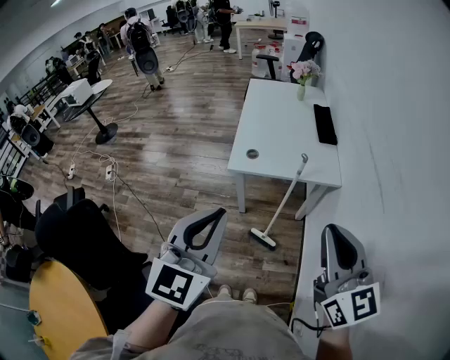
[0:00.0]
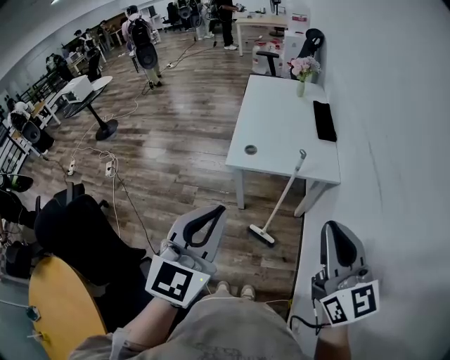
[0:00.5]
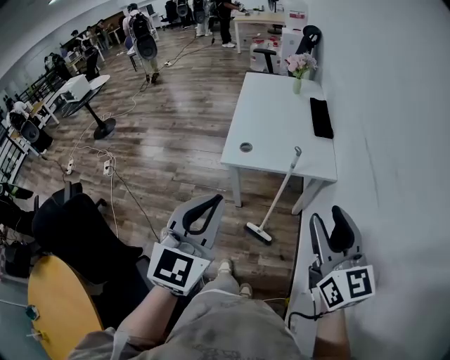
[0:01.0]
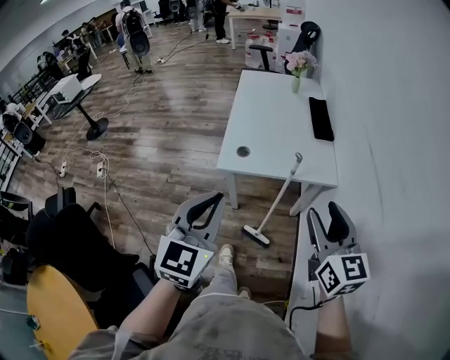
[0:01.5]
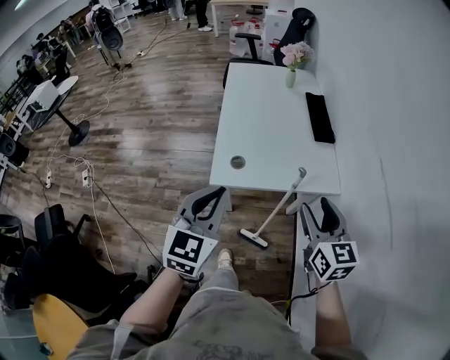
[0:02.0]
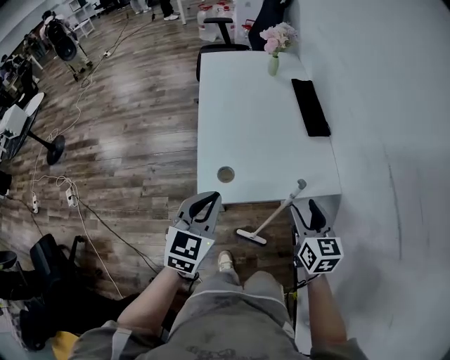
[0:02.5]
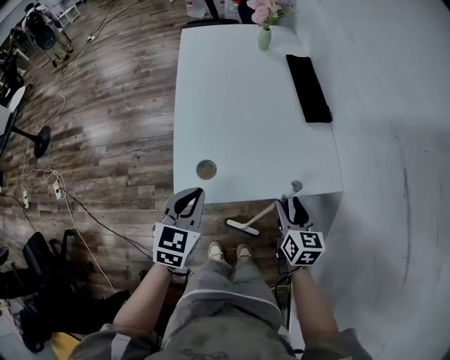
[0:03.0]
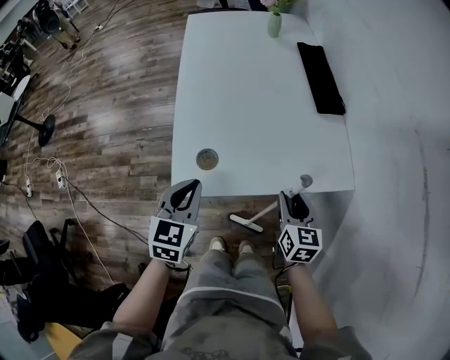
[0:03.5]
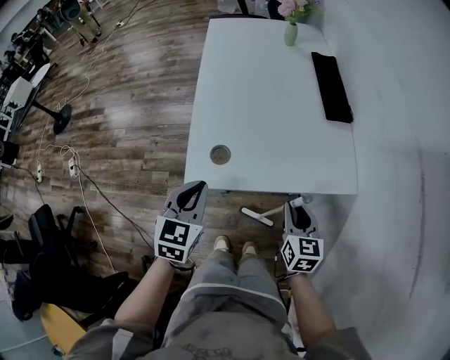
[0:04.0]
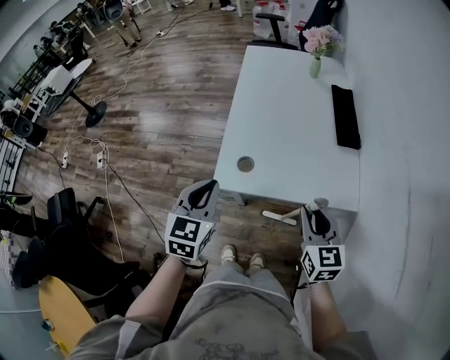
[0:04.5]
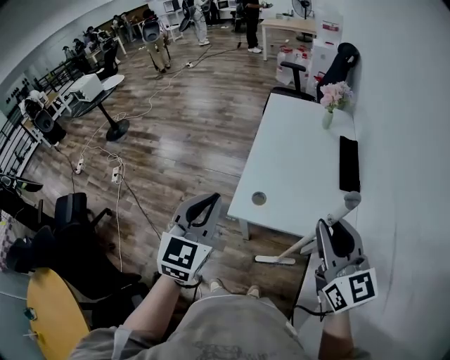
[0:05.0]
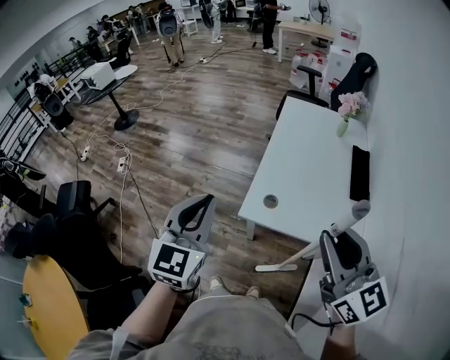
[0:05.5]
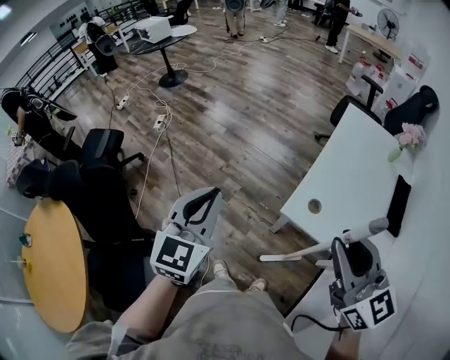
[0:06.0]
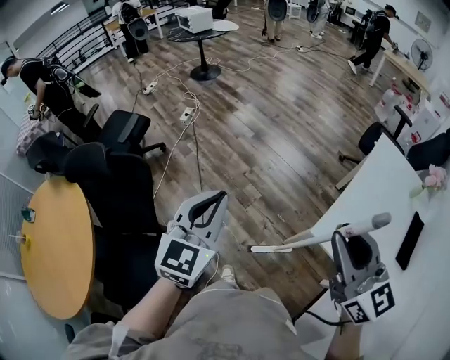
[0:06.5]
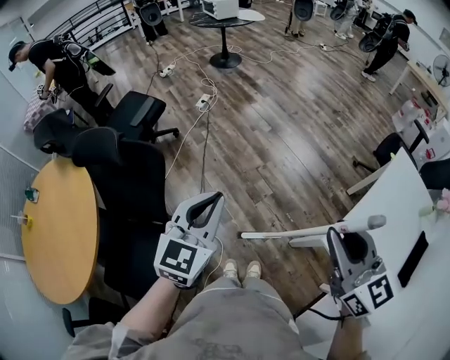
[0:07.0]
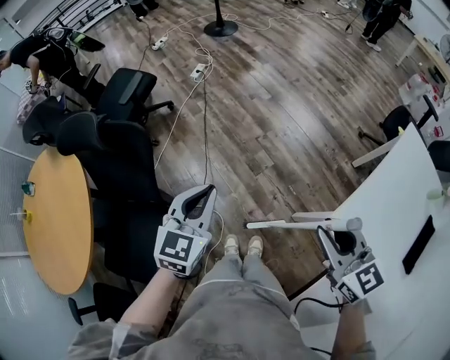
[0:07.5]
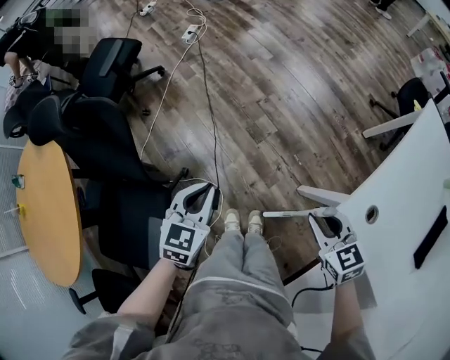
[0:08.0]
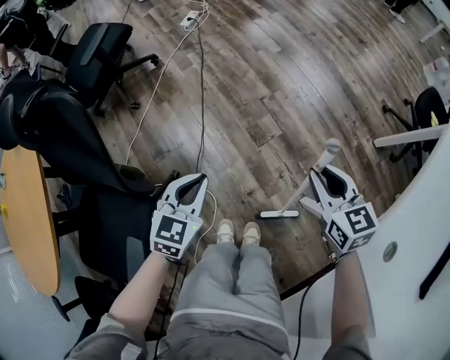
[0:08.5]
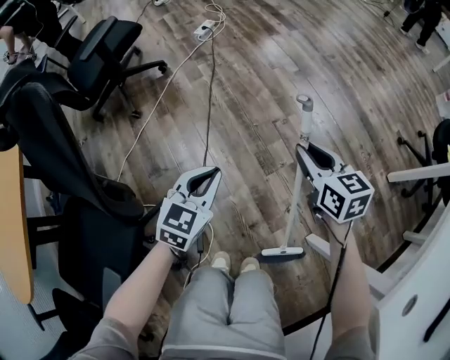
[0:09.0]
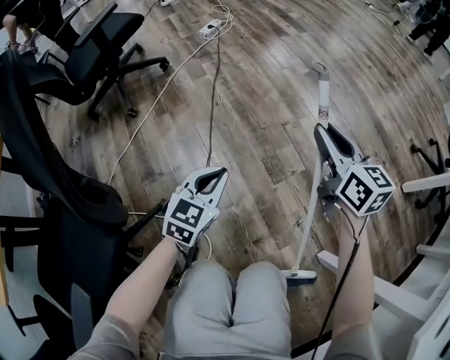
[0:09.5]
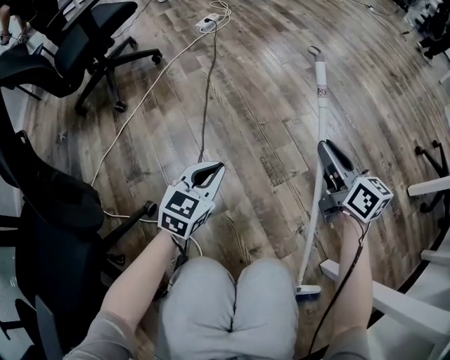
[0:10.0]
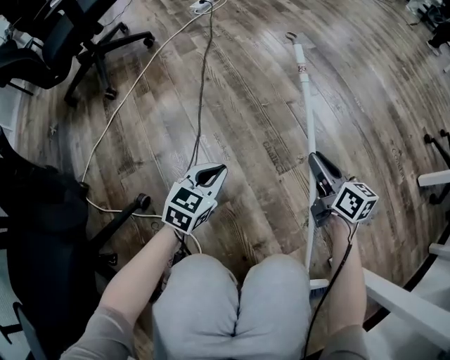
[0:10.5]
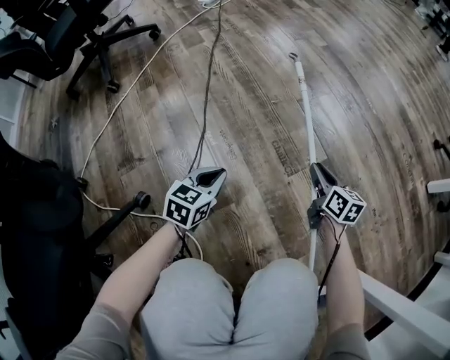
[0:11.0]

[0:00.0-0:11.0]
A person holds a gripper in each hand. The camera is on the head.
0:00.0 to 0:02.0: The two grippers go approximately 30 cm forward and downward. The right gripper turns by some 20 degrees, and opens up.
0:02.0 to 0:03.5: Both grippers travel together downward and forward, roughly 30 cm.
0:03.5 to 0:05.5: Both grippers move upward, approximately 35 cm. The left gripper turns by roughly 30 degrees; the right gripper swivels approximately 50 degrees.
0:05.5 to 0:07.5: The left gripper shifts by approximately 35 cm, and turns by about 40 degrees, while the right gripper shifts by some 35 cm, and changes its angle by approximately 50 degrees.
0:07.5 to 0:09.0: The left gripper shifts roughly 40 cm downward, while the right gripper goes approximately 50 cm downward and forward.
0:09.0 to 0:11.0: Both grippers move downward, approximately 40 cm. The right gripper changes its angle by some 20 degrees.

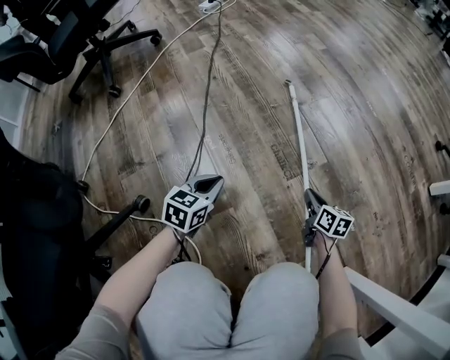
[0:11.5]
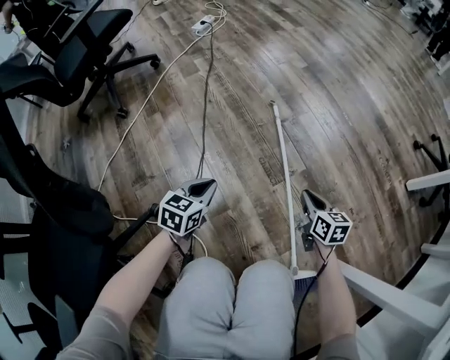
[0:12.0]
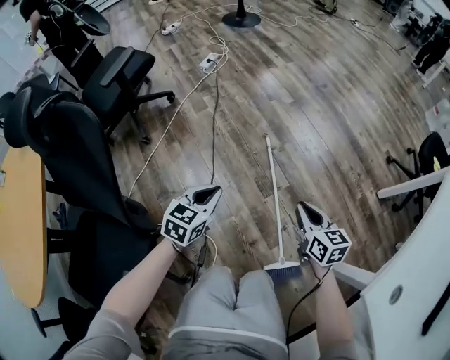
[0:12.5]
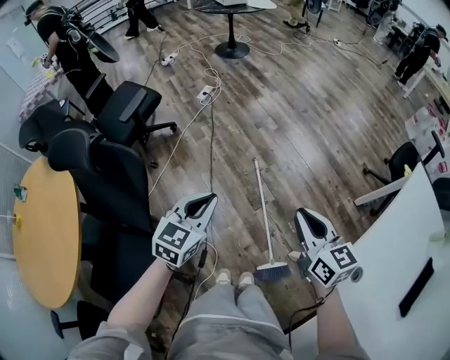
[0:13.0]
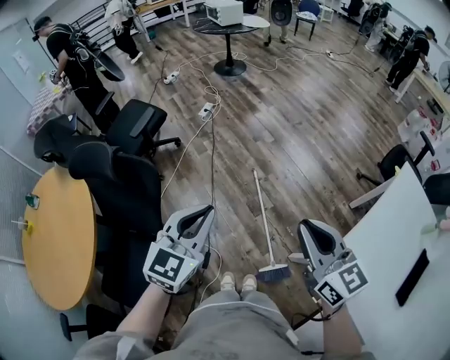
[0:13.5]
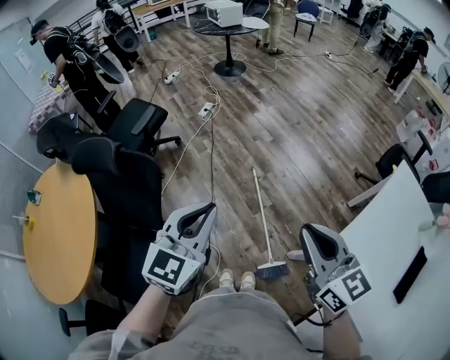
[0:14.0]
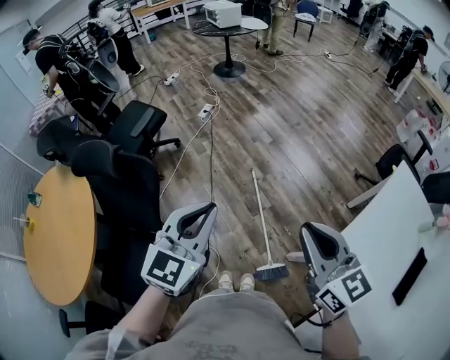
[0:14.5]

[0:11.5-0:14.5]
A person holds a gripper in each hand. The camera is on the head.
0:11.5 to 0:13.0: Both grippers move upward, roughly 80 cm. The right gripper swivels approximately 30 degrees. Meanwhile the left gripper turns by approximately 20 degrees.
0:13.0 to 0:14.5: The grippers both shift upward and backward by approximately 20 cm.

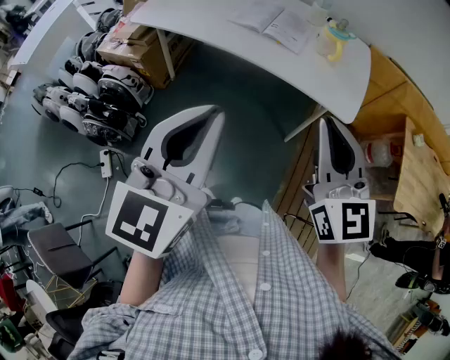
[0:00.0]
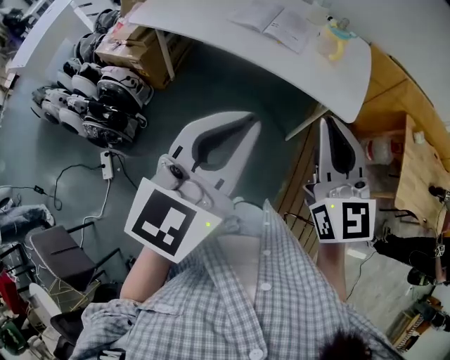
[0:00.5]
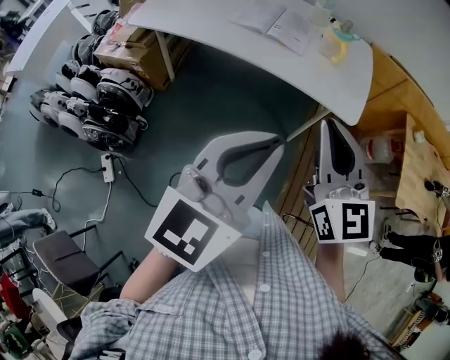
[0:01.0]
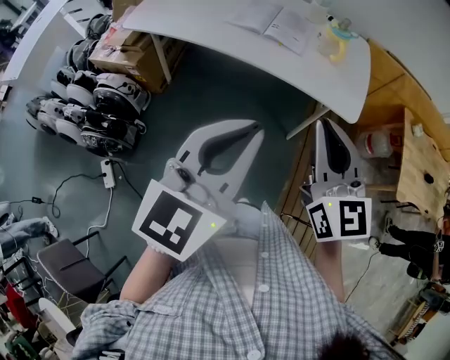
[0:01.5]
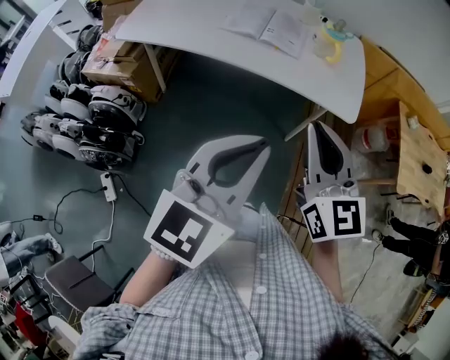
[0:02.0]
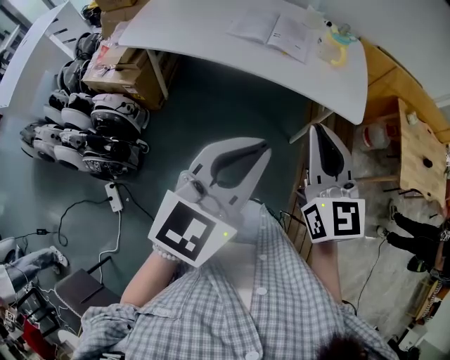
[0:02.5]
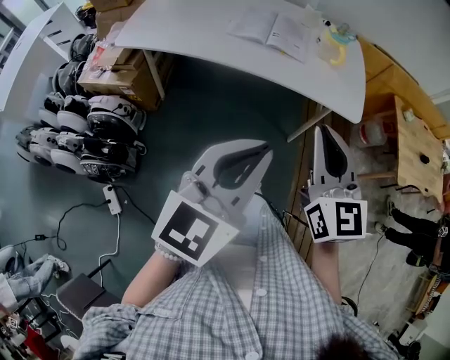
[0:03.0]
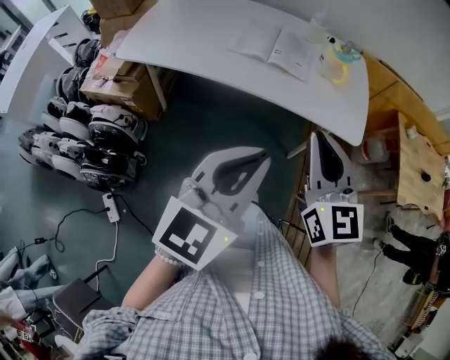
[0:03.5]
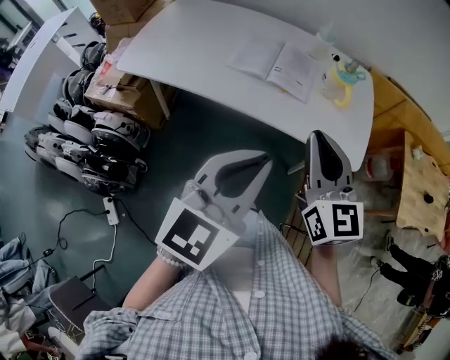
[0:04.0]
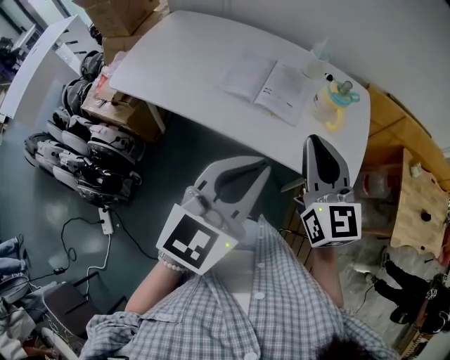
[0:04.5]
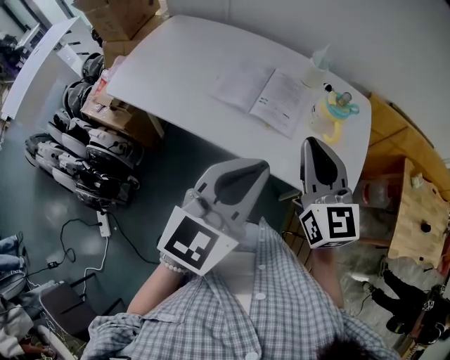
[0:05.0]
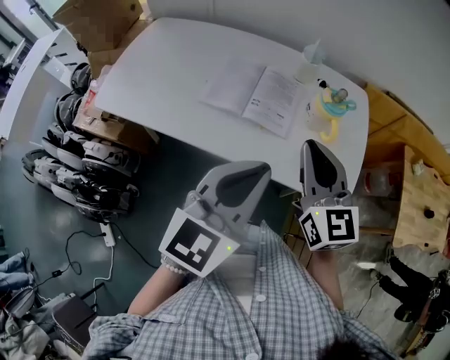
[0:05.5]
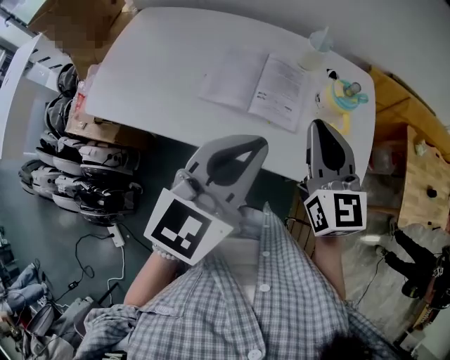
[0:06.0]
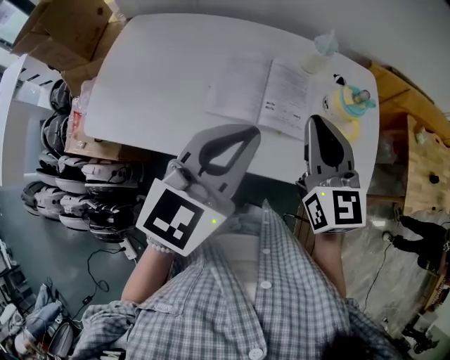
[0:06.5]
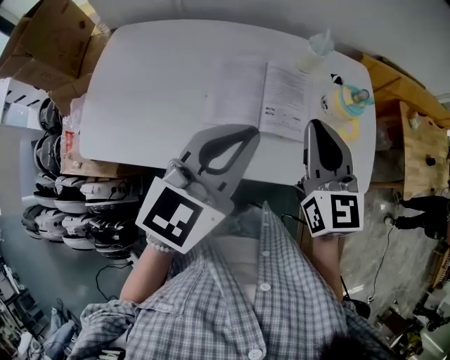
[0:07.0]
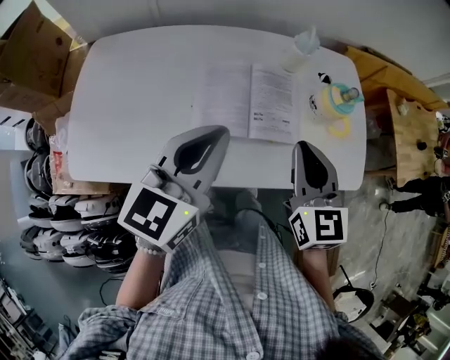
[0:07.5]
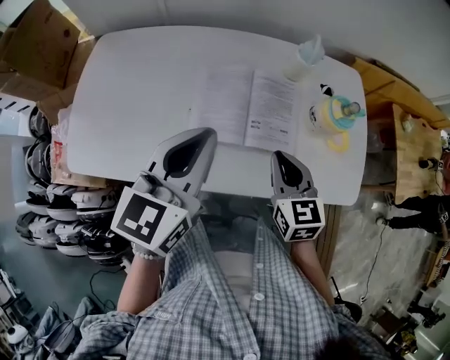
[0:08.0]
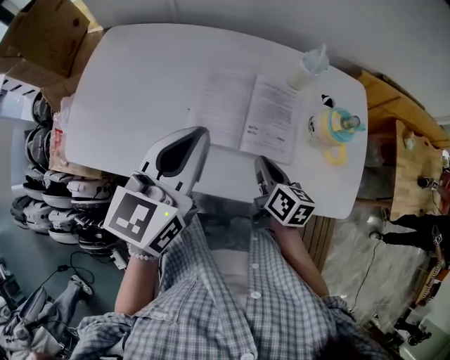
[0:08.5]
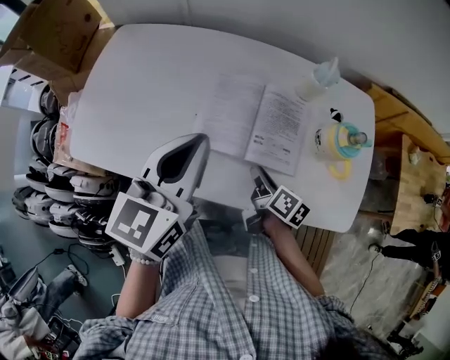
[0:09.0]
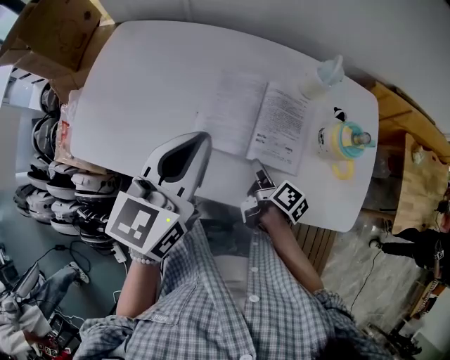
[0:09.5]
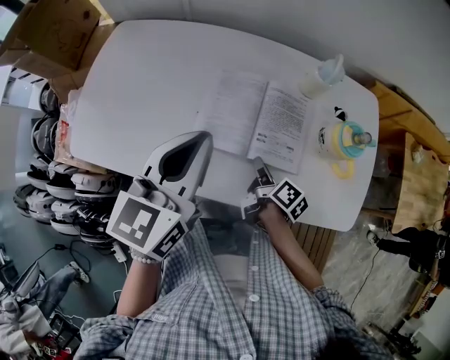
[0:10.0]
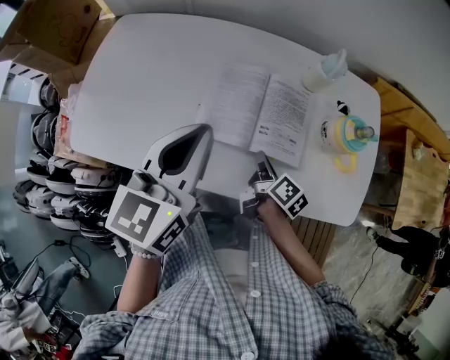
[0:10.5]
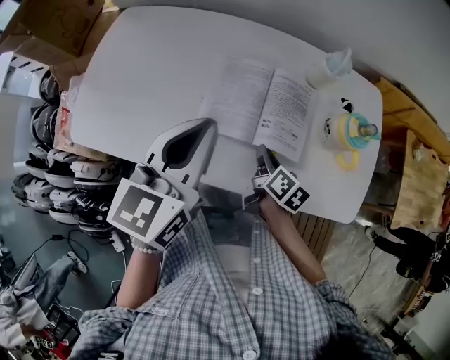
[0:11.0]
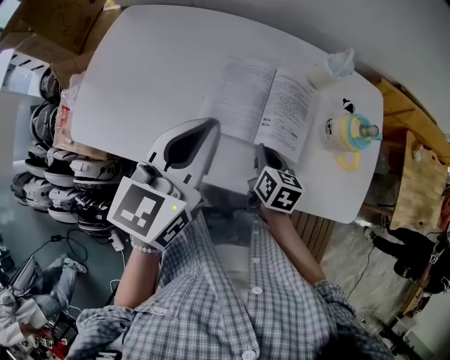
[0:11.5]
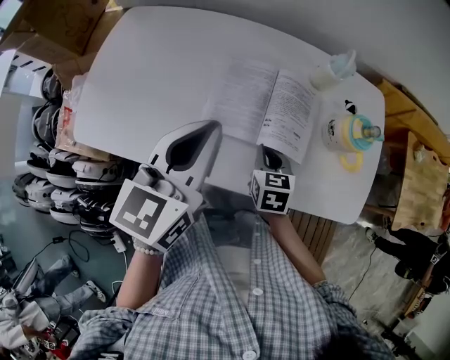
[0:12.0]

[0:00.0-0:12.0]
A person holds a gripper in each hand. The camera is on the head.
0:00.0 to 0:02.0: The left gripper changes place by some 5 cm, and turns by approximately 20 degrees, while the right gripper moves to the left, about 5 cm.
0:02.0 to 0:04.0: The two grippers go roughly 15 cm forward.
0:04.0 to 0:06.0: Both grippers travel together forward, some 20 cm.
0:06.0 to 0:08.0: The left gripper shifts some 15 cm to the left and forward; the right gripper is displaced downward and to the left by approximately 15 cm, and changes its angle by about 20 degrees.
0:08.0 to 0:10.0: The right gripper is displaced downward by roughly 15 cm, and rotates around the line of its fingers by roughly 70 degrees, clockwise from behind.
0:10.0 to 0:12.0: The right gripper rotates around the line of its fingers by about 60 degrees, counterclockwise from behind.

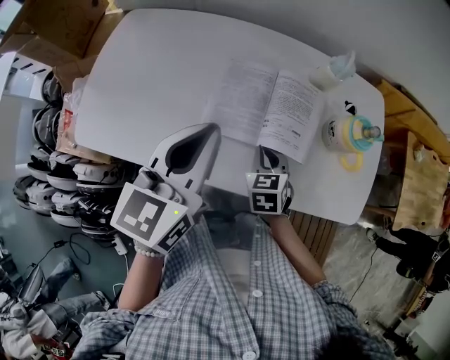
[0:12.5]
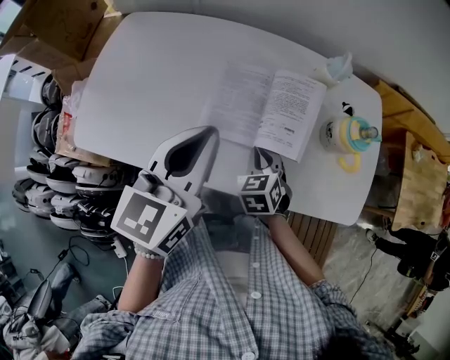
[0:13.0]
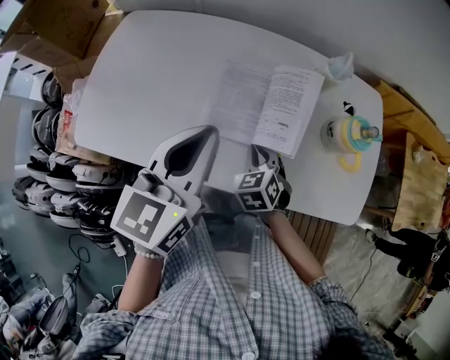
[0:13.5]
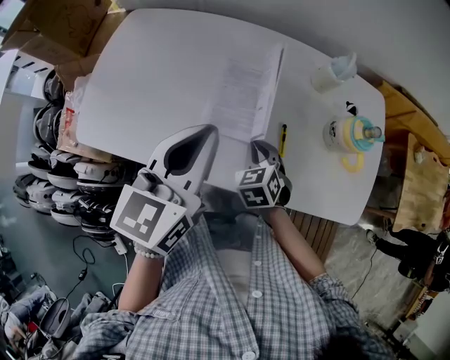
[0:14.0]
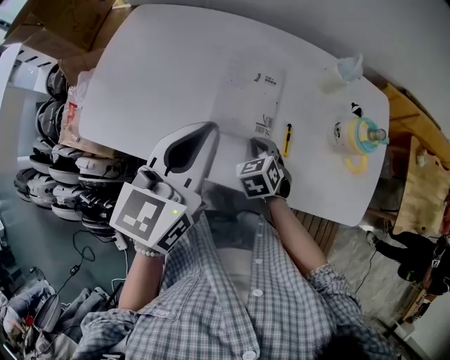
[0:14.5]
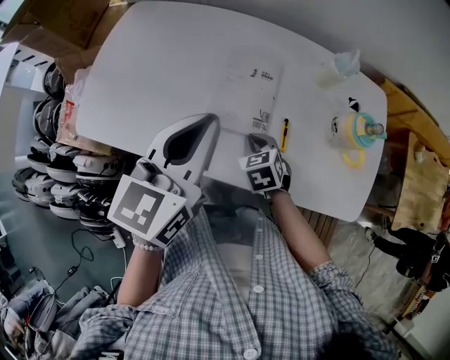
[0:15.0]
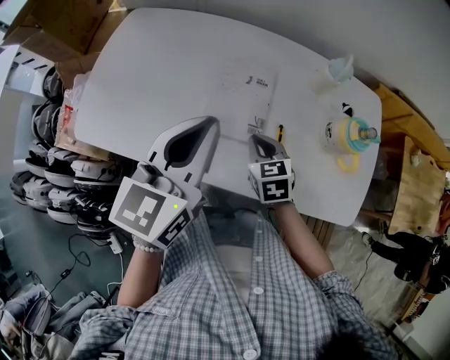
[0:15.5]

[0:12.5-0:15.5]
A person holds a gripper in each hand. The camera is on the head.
0:12.5 to 0:15.5: The grippers make only small movements.
